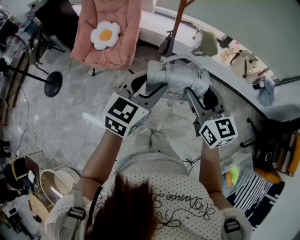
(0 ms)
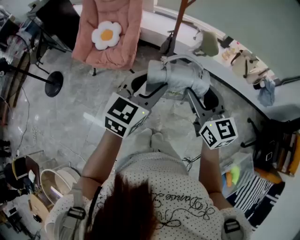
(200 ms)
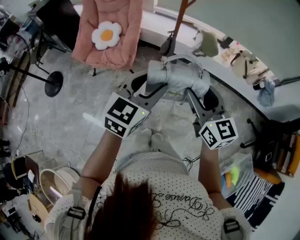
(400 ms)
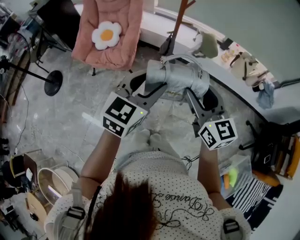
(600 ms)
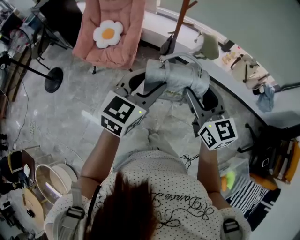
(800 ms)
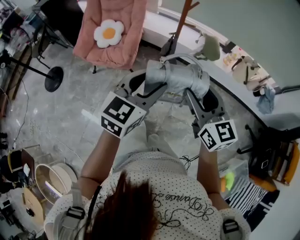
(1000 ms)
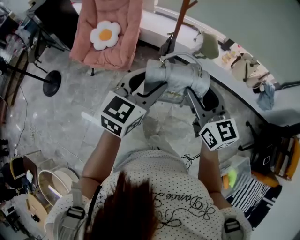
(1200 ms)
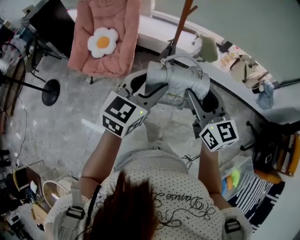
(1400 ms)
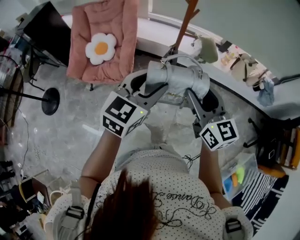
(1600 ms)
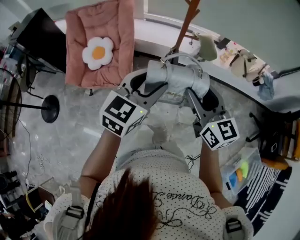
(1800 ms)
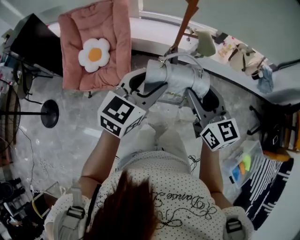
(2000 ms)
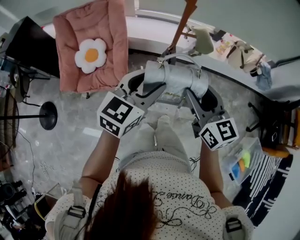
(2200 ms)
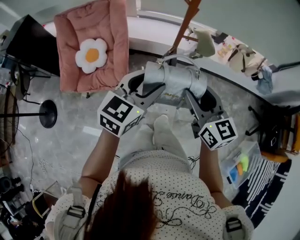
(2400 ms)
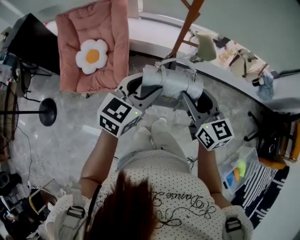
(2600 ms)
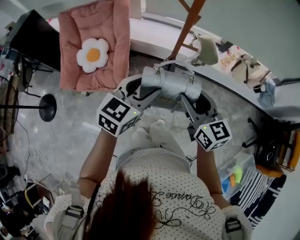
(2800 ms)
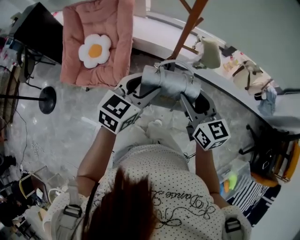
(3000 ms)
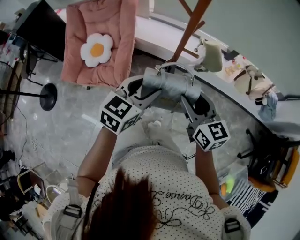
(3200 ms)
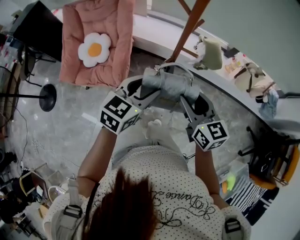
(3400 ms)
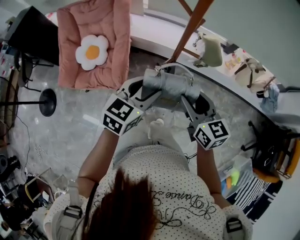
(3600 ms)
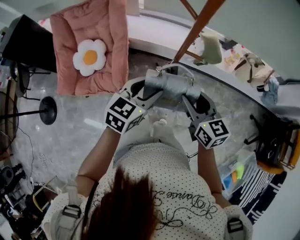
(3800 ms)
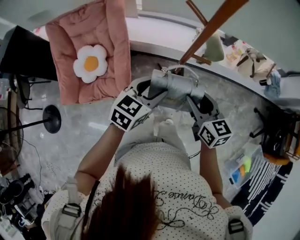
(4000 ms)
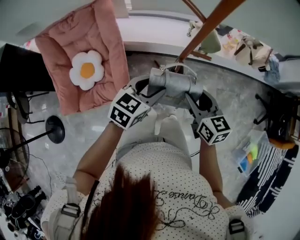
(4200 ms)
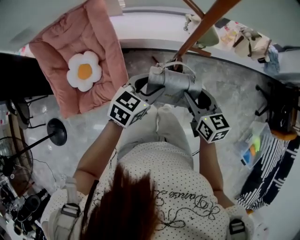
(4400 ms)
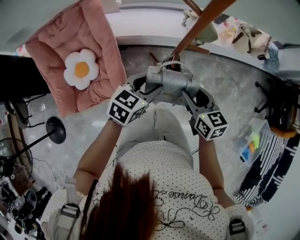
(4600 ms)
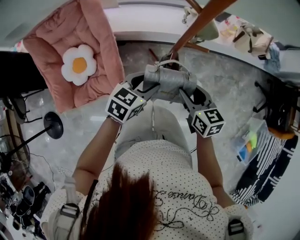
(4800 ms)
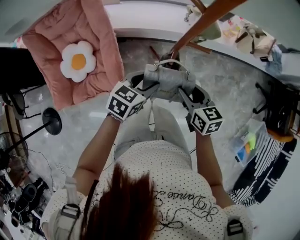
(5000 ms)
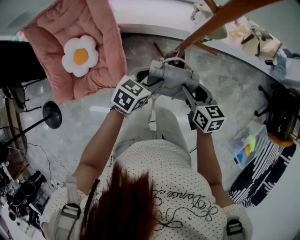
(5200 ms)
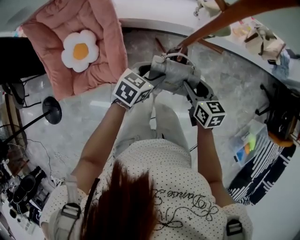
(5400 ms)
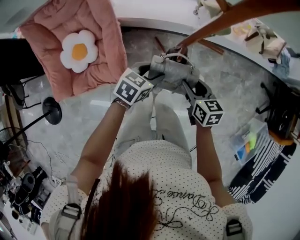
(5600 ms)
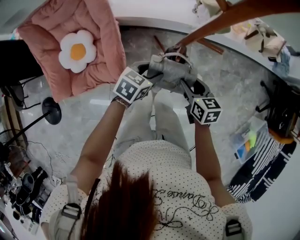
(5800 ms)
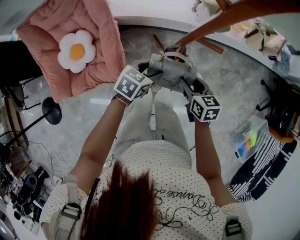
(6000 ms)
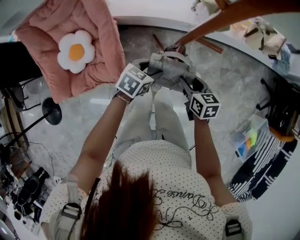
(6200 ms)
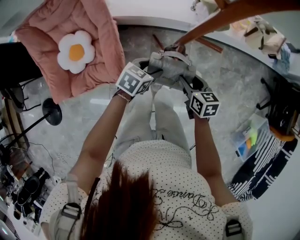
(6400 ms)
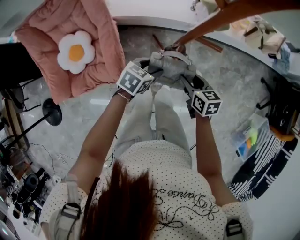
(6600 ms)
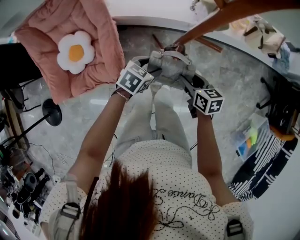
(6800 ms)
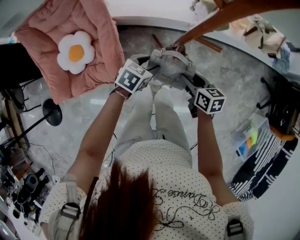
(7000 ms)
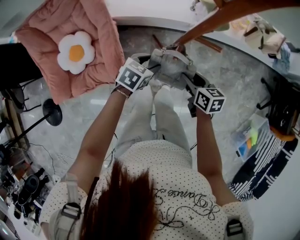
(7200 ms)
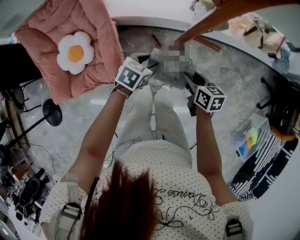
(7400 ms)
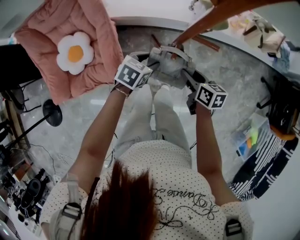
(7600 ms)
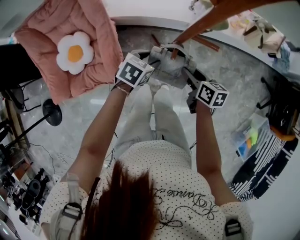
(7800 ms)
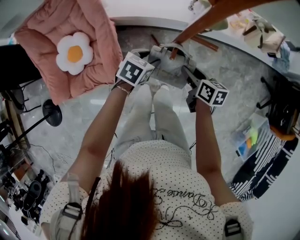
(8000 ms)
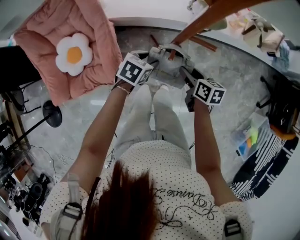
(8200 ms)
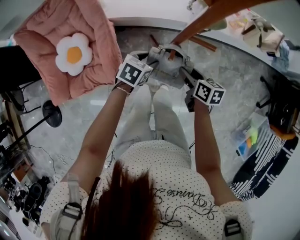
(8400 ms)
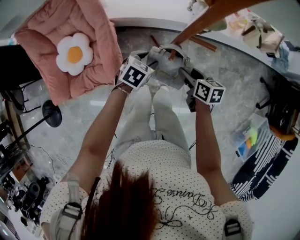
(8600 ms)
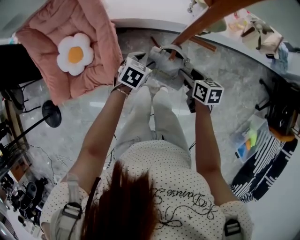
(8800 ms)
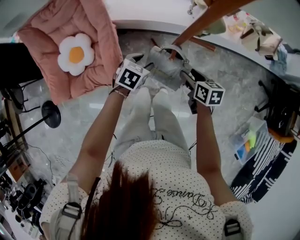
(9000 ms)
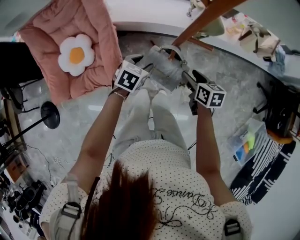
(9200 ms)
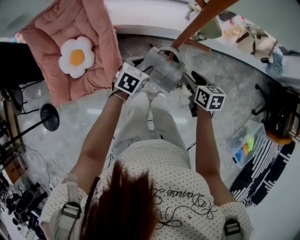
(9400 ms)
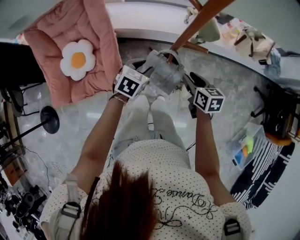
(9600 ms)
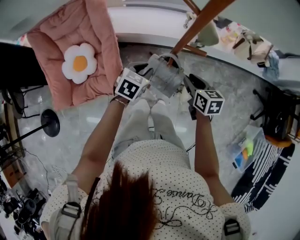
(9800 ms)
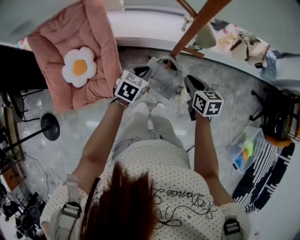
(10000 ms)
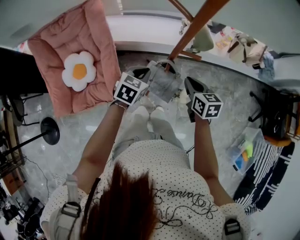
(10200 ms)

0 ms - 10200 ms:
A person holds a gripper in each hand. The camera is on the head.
0 ms - 1400 ms: Both grippers travel together forward, approximately 5 cm.
1400 ms - 3000 ms: Both grippers move forward, roughly 15 cm.
3000 ms - 4400 ms: The right gripper is displaced downward, to the left and forward by roughly 15 cm, and changes its angle by approximately 20 degrees. Meanwhile the left gripper is displaced forward, downward and to the left by some 15 cm, and swivels approximately 20 degrees.
4400 ms - 5800 ms: The grippers both shift downward by roughly 15 cm.
5800 ms - 7200 ms: The grippers make only small movements.
7200 ms - 8800 ms: The grippers stay close to where they were, moving slightly.
8800 ms - 10200 ms: The grippers both shift upward by approximately 10 cm. The right gripper closes its fingers. Meanwhile the left gripper closes.

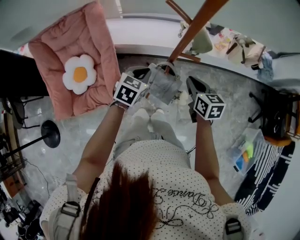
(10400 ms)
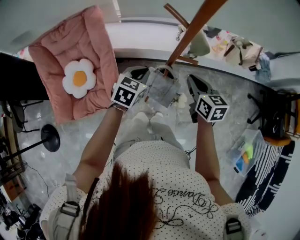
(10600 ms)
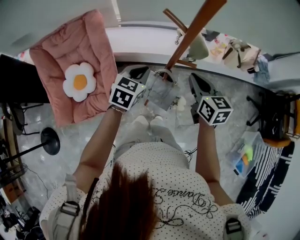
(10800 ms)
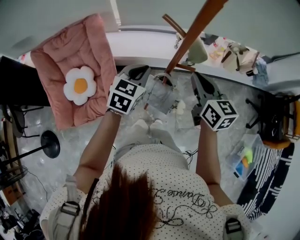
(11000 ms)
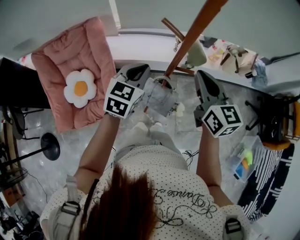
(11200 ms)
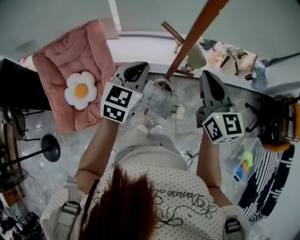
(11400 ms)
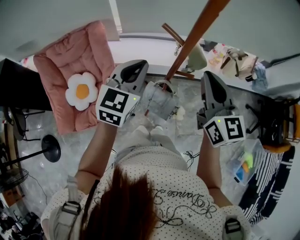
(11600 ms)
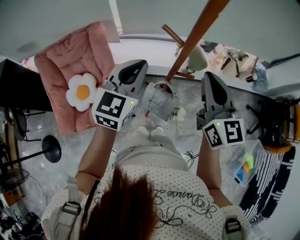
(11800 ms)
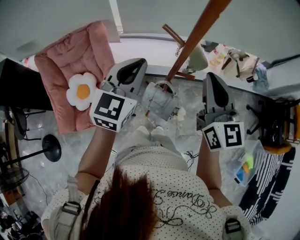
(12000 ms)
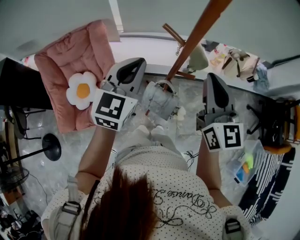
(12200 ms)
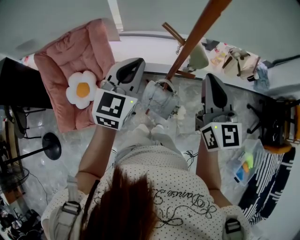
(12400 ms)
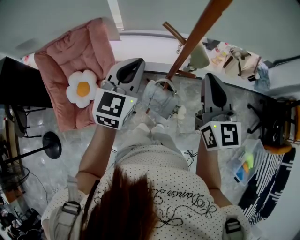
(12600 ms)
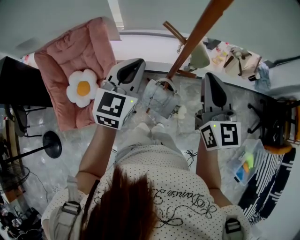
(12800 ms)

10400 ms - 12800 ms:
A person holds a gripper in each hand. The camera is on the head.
10400 ms - 11600 ms: The two grippers go some 25 cm upward. The right gripper angles its fingers upward, by some 30 degrees, while the left gripper rotates about 30 degrees.
11600 ms - 12800 ms: There are only small adjustments of the grippers.

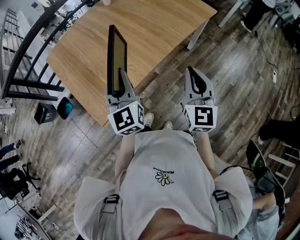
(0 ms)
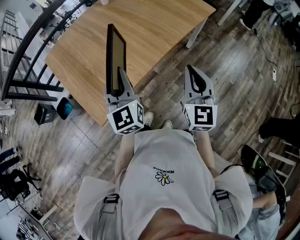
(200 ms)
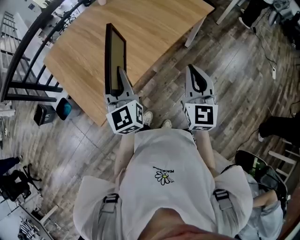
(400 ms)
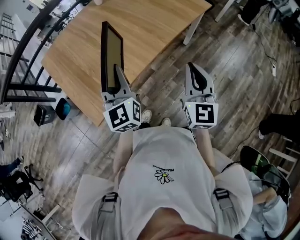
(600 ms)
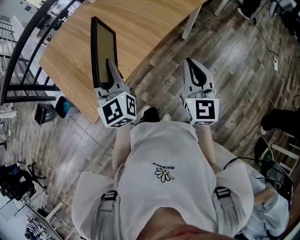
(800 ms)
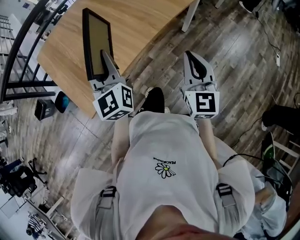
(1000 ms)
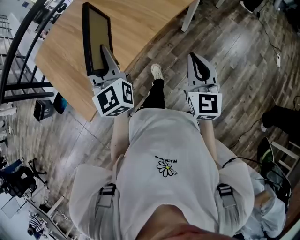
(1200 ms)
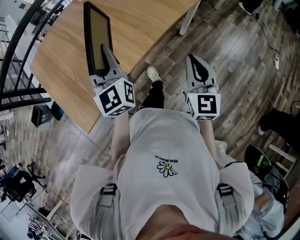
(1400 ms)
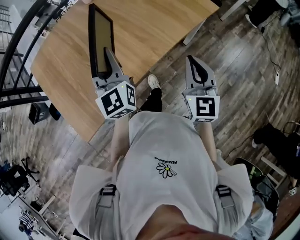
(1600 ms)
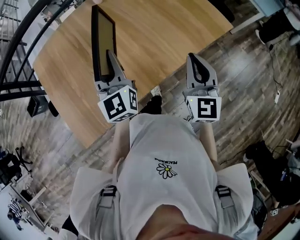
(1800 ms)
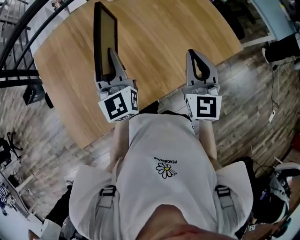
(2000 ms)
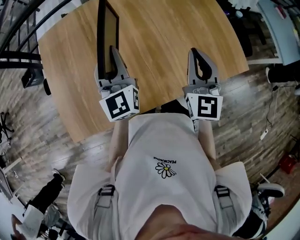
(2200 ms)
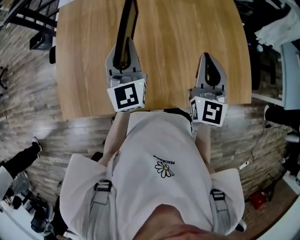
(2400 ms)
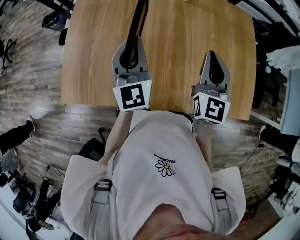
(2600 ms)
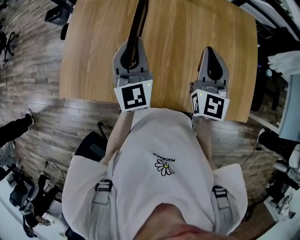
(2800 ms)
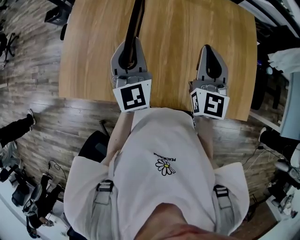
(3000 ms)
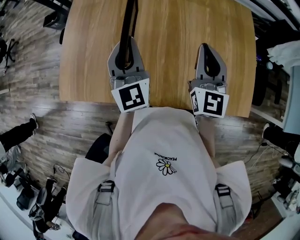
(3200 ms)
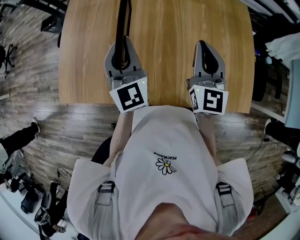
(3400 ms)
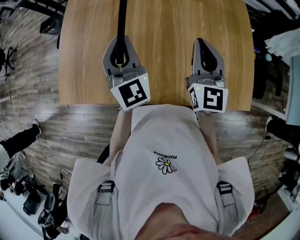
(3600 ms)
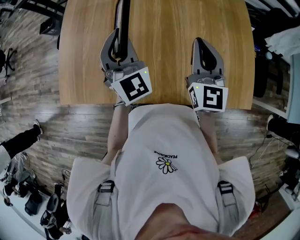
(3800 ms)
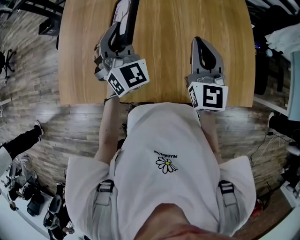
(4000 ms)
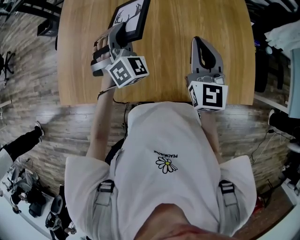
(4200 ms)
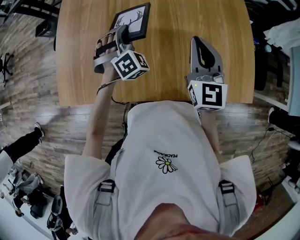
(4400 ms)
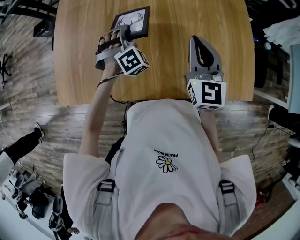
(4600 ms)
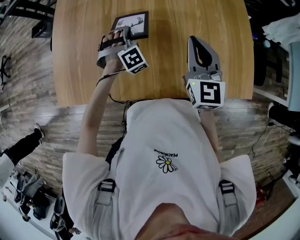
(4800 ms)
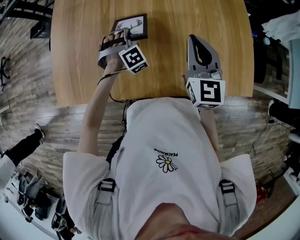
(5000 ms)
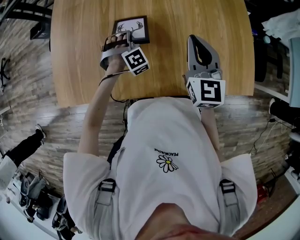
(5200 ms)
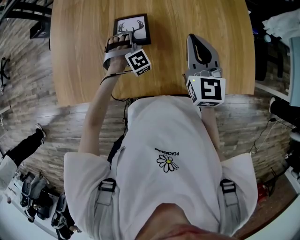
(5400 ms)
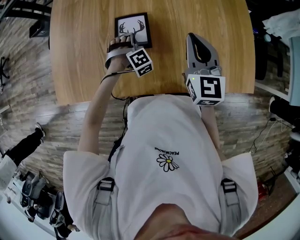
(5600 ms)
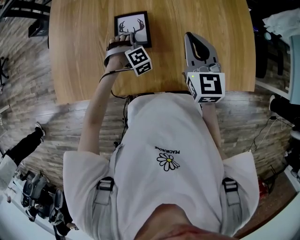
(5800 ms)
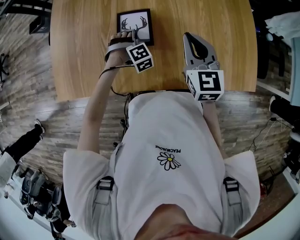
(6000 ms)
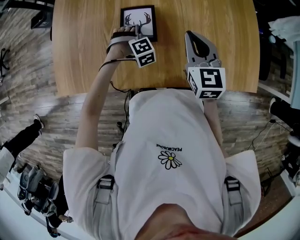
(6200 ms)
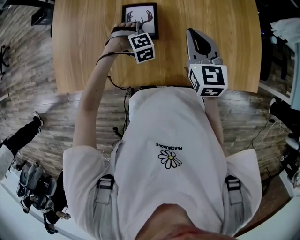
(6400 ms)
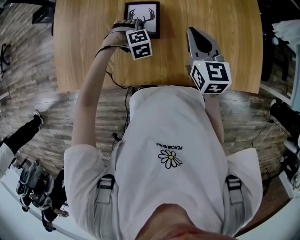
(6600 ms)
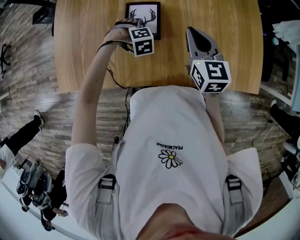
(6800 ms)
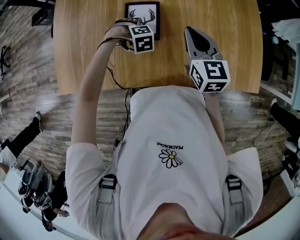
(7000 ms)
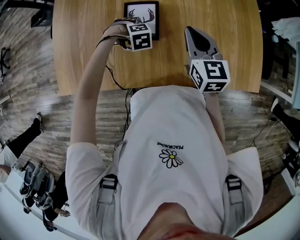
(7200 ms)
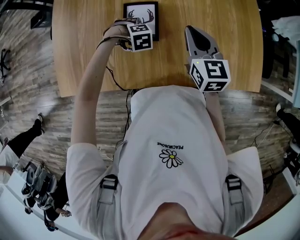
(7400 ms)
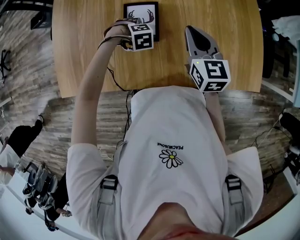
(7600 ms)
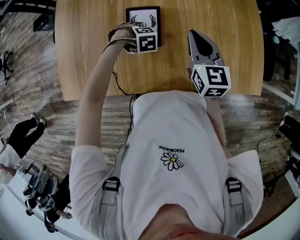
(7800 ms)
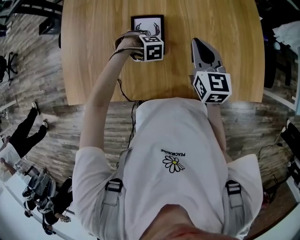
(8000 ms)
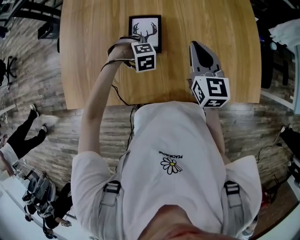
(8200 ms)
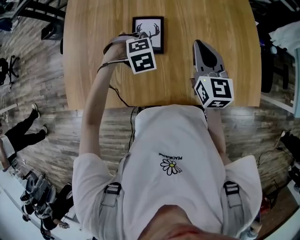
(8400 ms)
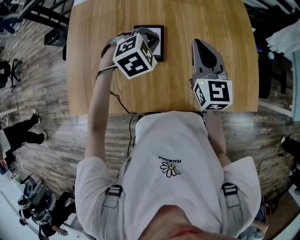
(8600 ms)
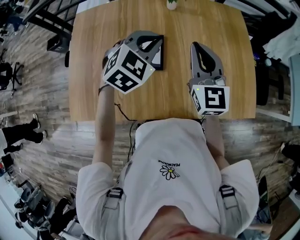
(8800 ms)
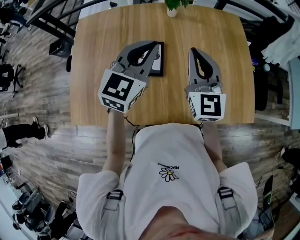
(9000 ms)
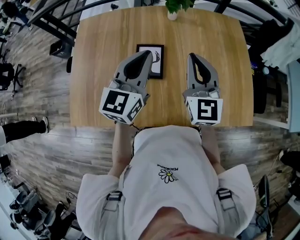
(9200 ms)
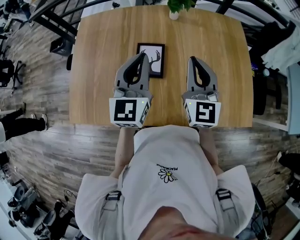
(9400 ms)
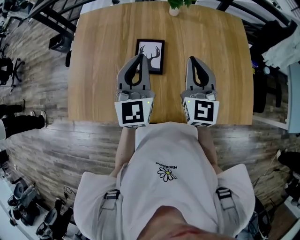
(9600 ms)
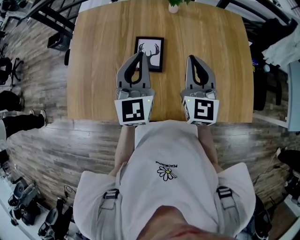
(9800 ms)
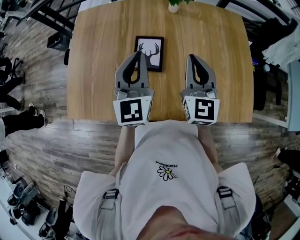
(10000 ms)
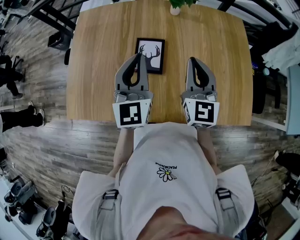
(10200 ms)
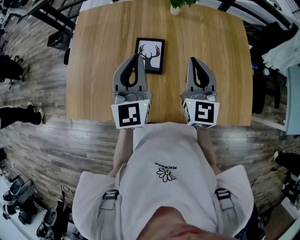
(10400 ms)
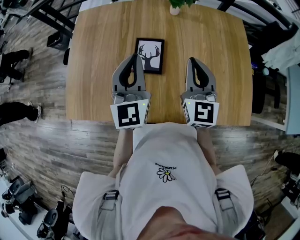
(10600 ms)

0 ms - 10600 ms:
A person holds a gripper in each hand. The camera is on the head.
0 ms - 1600 ms: Both grippers move forward and to the right, roughly 20 cm.
1600 ms - 3000 ms: The left gripper changes place by some 15 cm, and turns by approximately 40 degrees; the right gripper moves about 35 cm, and changes its angle by about 40 degrees.
3000 ms - 4600 ms: The left gripper travels downward and forward by roughly 15 cm, and rolls clockwise, seen from behind, by roughly 70 degrees.
4600 ms - 6000 ms: The left gripper goes approximately 15 cm downward and backward, swivels about 30 degrees, and opens its fingers, while the right gripper is displaced downward by some 5 cm.
6000 ms - 7600 ms: The left gripper turns by about 30 degrees.
7600 ms - 9000 ms: The left gripper shifts roughly 35 cm upward, angles its fingers upward, by about 80 degrees, and closes its fingers. Meanwhile the right gripper moves upward, roughly 15 cm, and swivels approximately 30 degrees.
9000 ms - 10600 ms: The left gripper shifts about 5 cm to the left, and swivels roughly 30 degrees.
